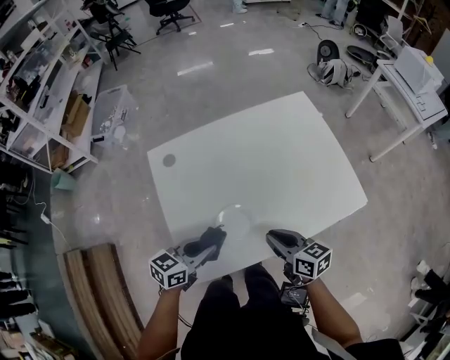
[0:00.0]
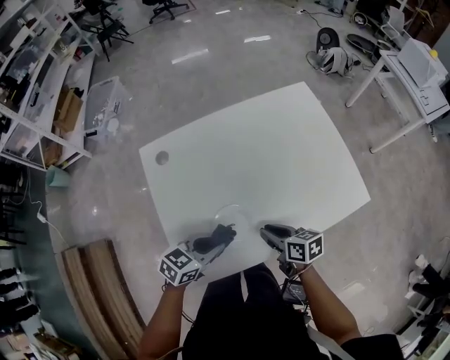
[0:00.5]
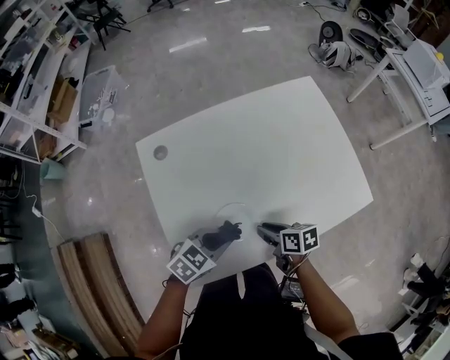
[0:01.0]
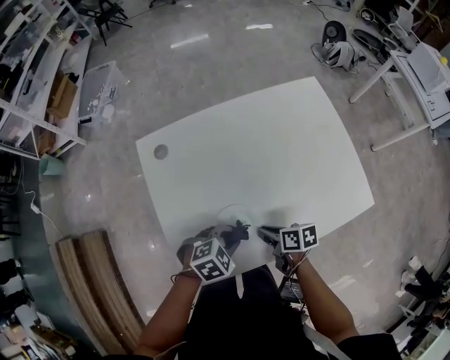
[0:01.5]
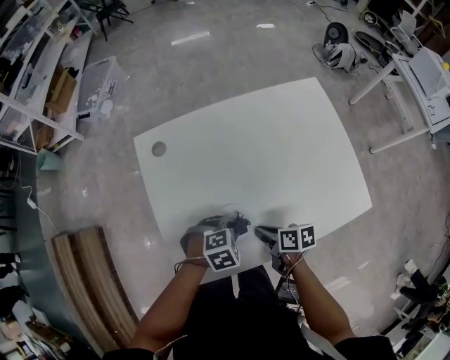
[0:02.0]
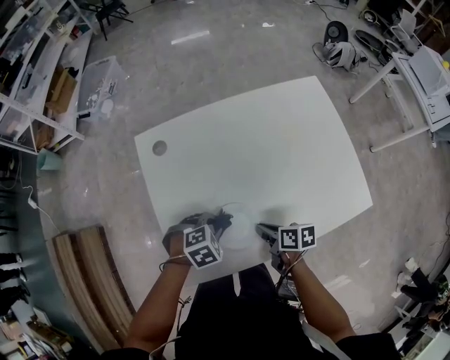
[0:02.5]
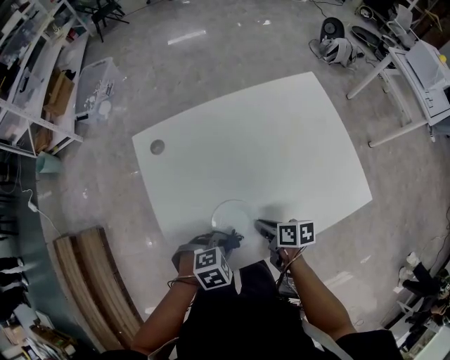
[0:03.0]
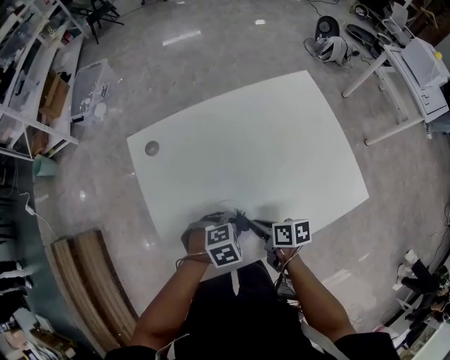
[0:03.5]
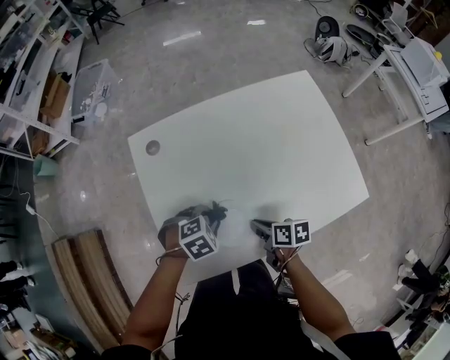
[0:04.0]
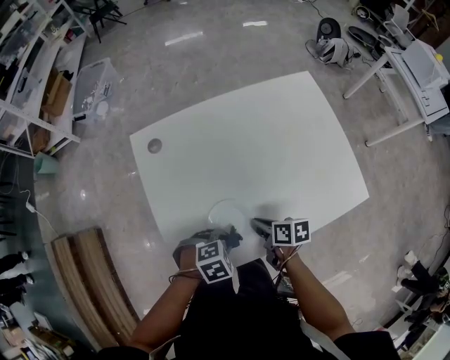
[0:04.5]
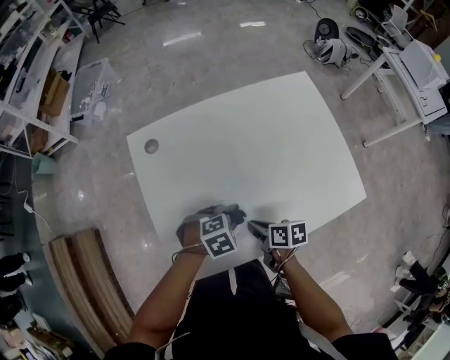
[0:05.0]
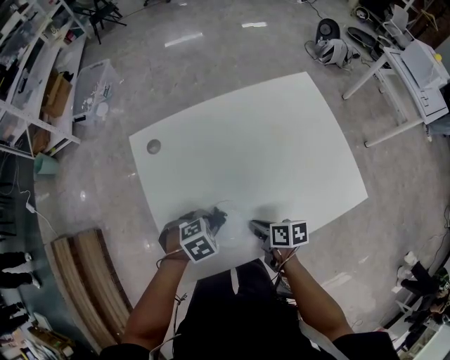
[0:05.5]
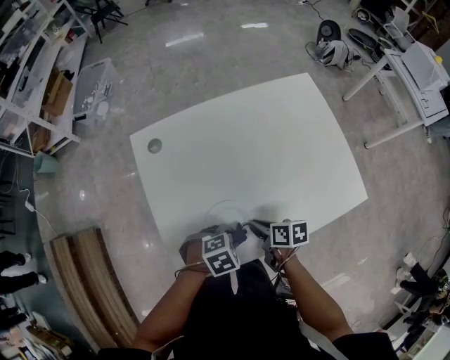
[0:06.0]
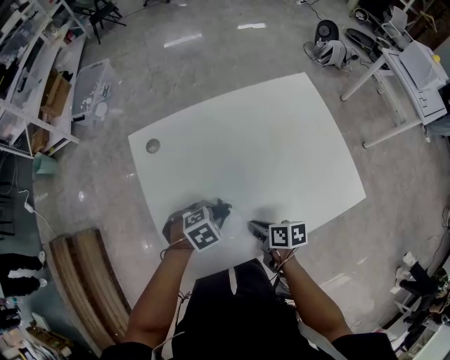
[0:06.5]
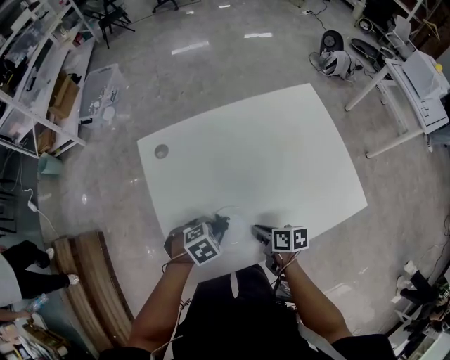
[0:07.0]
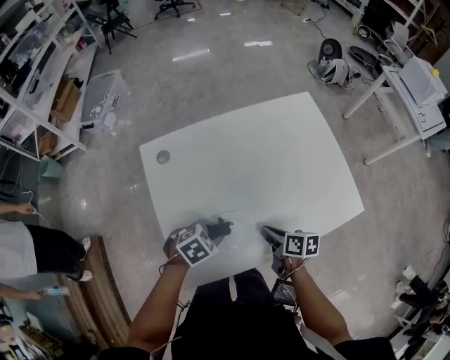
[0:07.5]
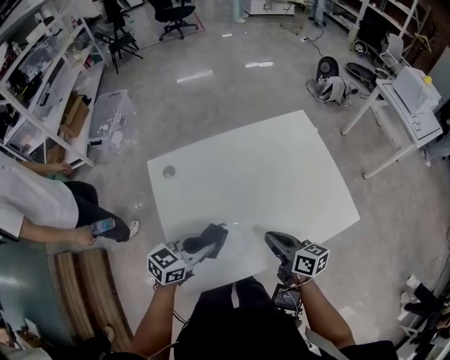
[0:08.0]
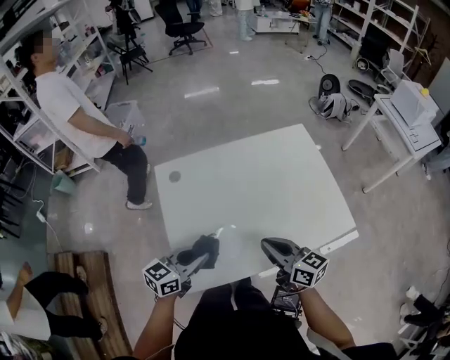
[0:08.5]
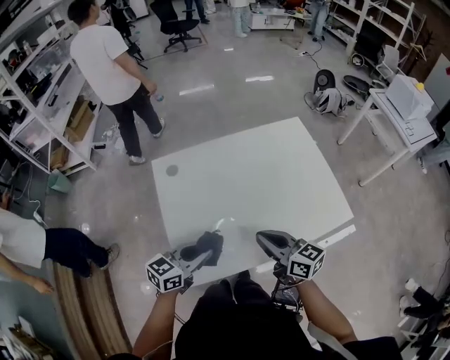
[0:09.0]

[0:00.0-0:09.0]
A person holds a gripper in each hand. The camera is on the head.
0:00.0 to 0:02.0: Both grippers travel together downward, some 15 cm. The left gripper angles its fingers downward, by some 40 degrees; the right gripper rotates about 40 degrees.
0:02.0 to 0:04.5: The left gripper shifts by roughly 5 cm.
0:04.5 to 0:07.0: The left gripper changes place by approximately 5 cm.
0:07.0 to 0:09.0: The grippers both shift upward by about 20 cm. The right gripper angles its fingers upward, by about 30 degrees. The left gripper tips its fingers upward by roughly 50 degrees.

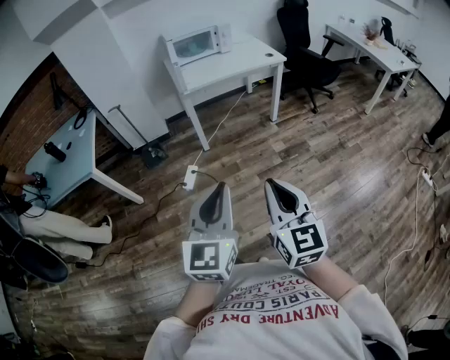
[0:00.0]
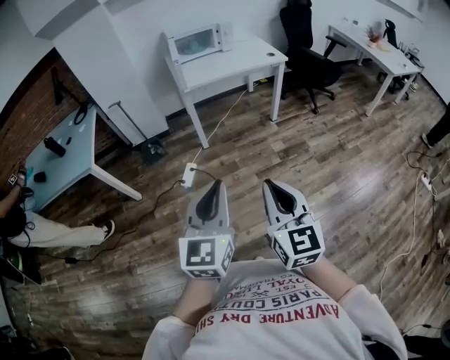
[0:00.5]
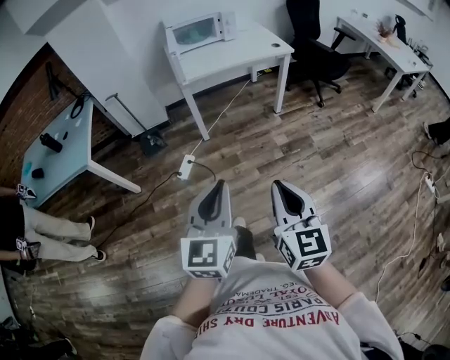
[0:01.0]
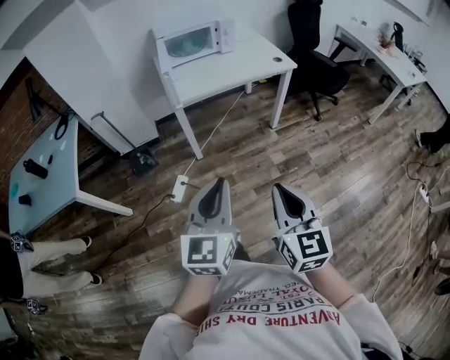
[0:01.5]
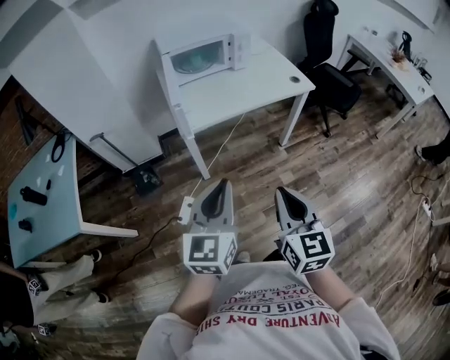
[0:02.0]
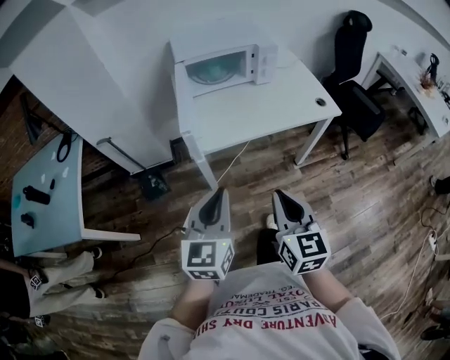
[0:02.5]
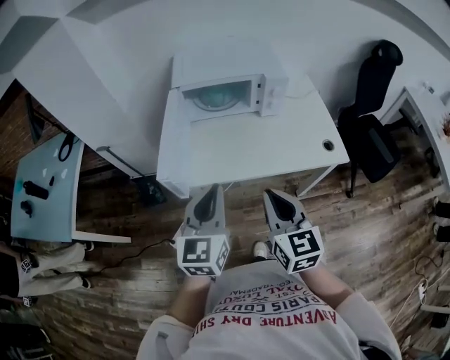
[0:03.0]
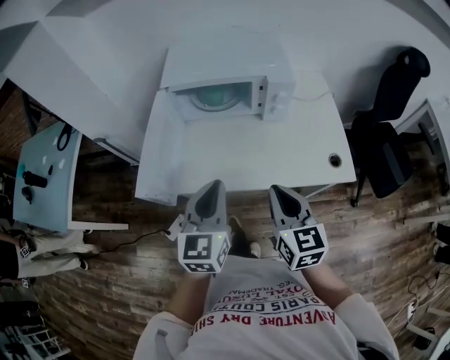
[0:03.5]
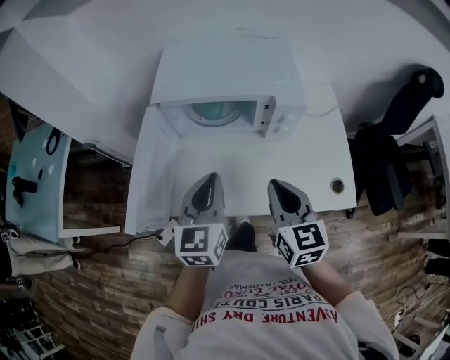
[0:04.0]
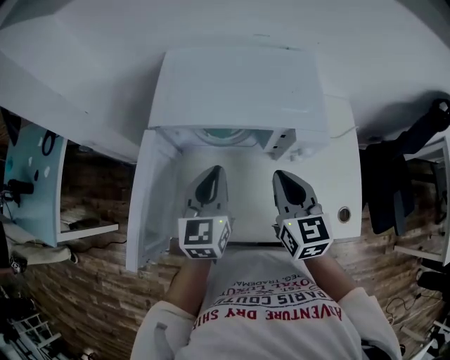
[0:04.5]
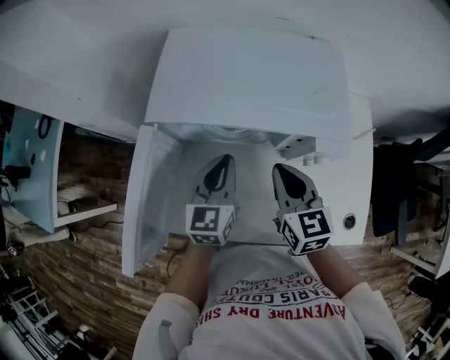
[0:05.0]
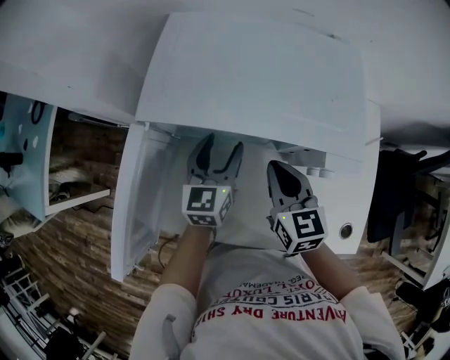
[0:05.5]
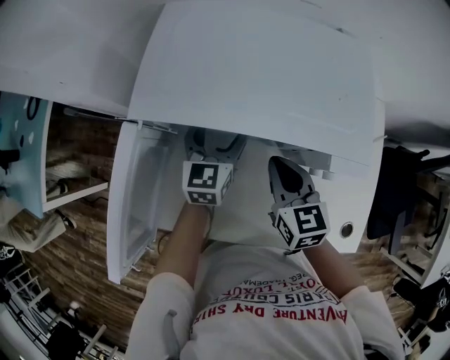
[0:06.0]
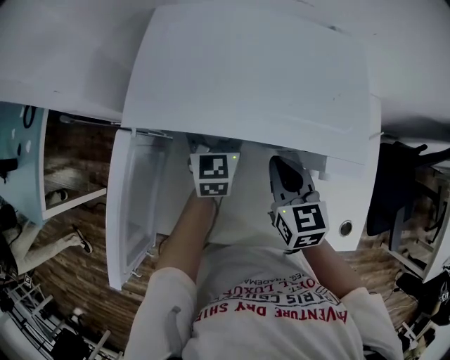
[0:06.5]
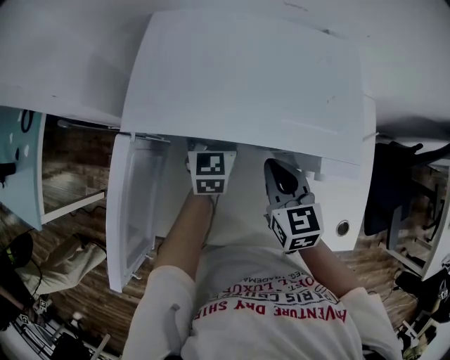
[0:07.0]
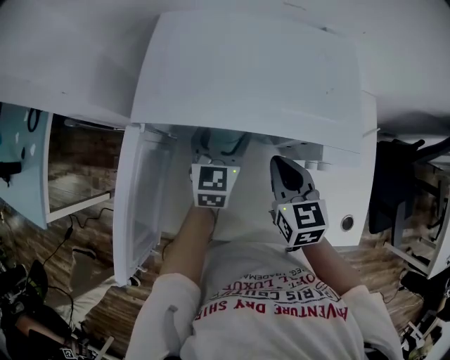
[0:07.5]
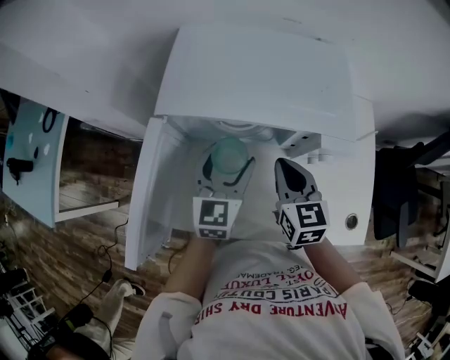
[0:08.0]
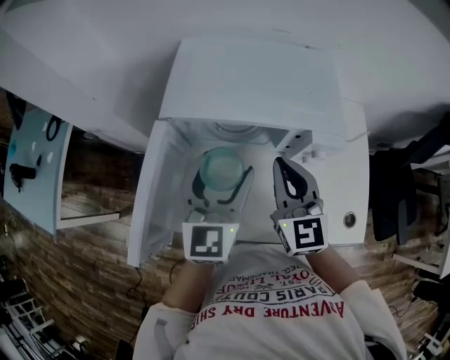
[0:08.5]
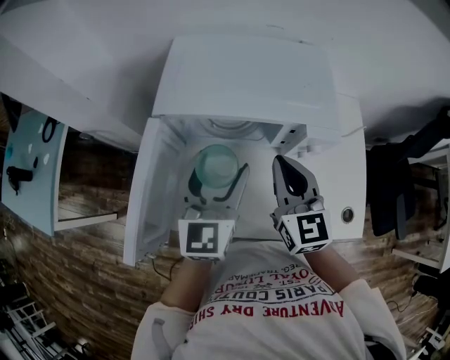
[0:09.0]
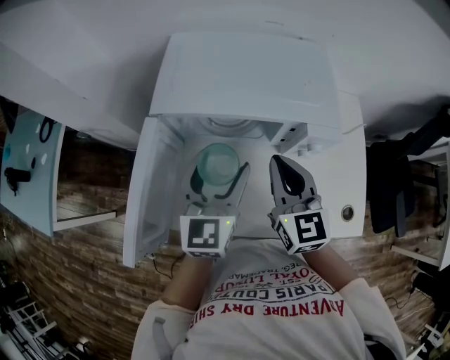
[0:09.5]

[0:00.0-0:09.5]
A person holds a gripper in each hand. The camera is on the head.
0:00.0 to 0:02.0: The grippers both shift forward by roughly 40 cm.
0:02.0 to 0:04.0: Both grippers are carried about 50 cm. The left gripper changes its angle by roughly 30 degrees. Meanwhile the right gripper turns by roughly 30 degrees.
0:04.0 to 0:05.5: The two grippers go roughly 25 cm forward and downward. The left gripper opens its fingers.
0:07.5 to 0:09.5: The left gripper is displaced backward and upward by some 20 cm; the right gripper goes approximately 10 cm upward and backward.

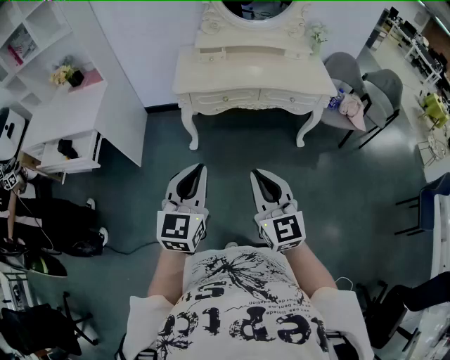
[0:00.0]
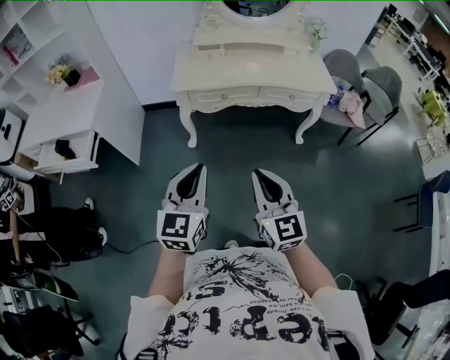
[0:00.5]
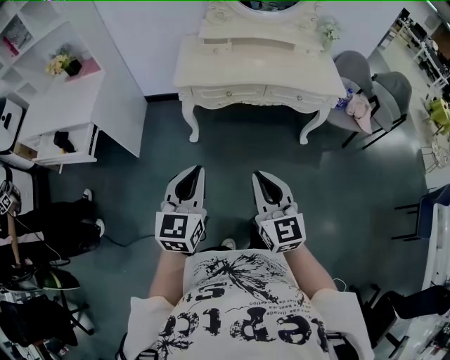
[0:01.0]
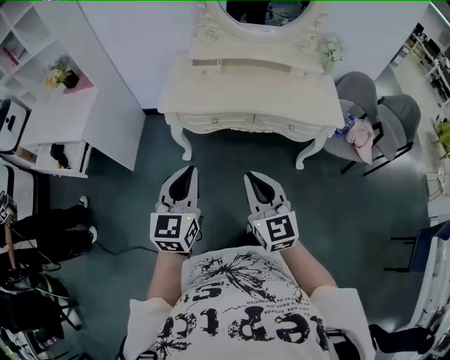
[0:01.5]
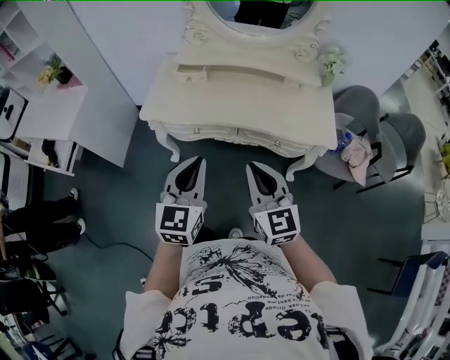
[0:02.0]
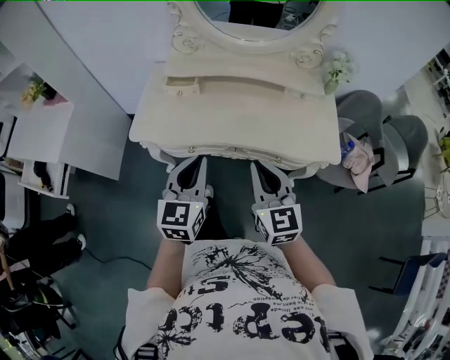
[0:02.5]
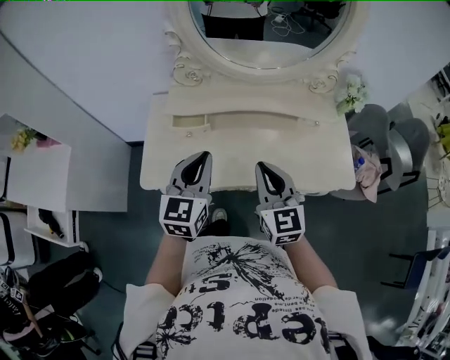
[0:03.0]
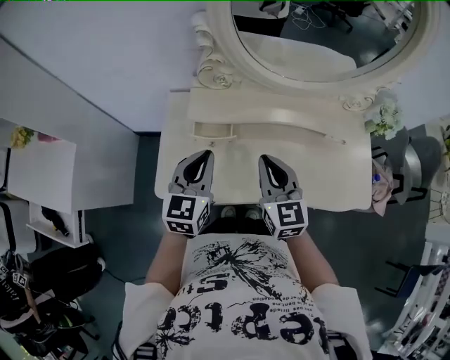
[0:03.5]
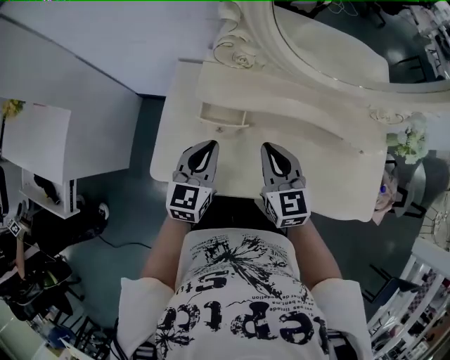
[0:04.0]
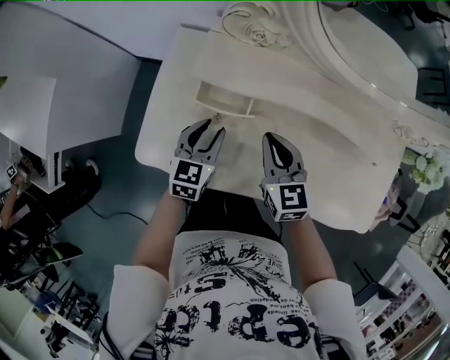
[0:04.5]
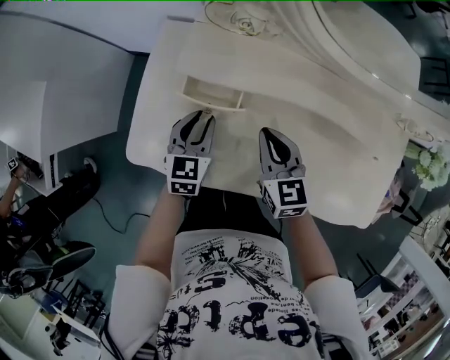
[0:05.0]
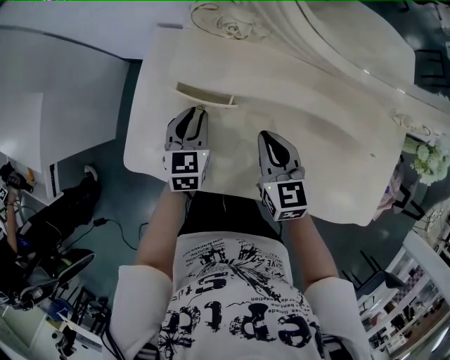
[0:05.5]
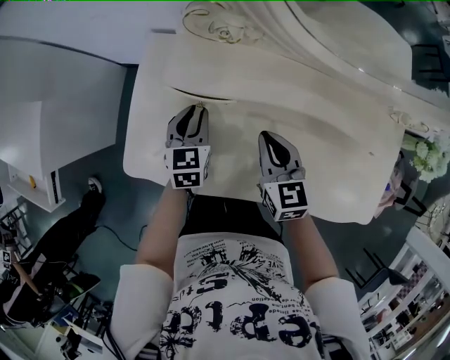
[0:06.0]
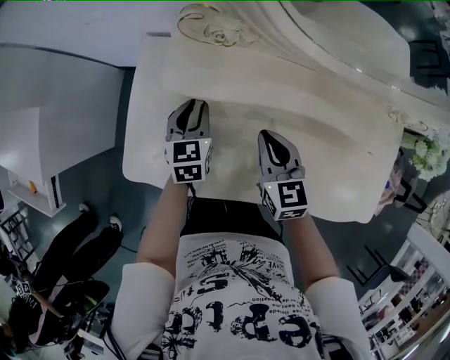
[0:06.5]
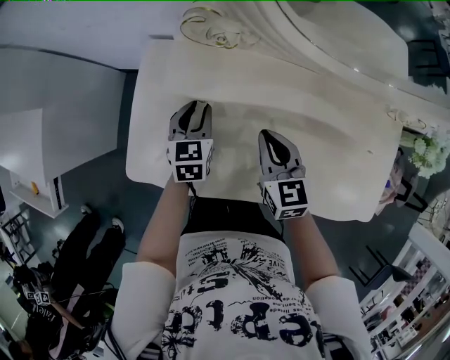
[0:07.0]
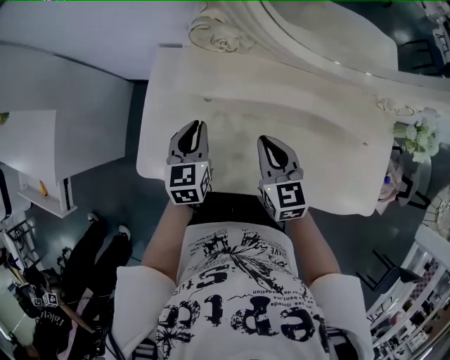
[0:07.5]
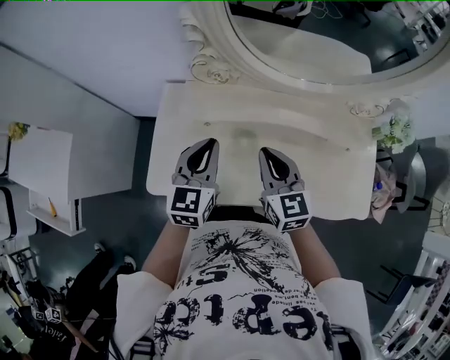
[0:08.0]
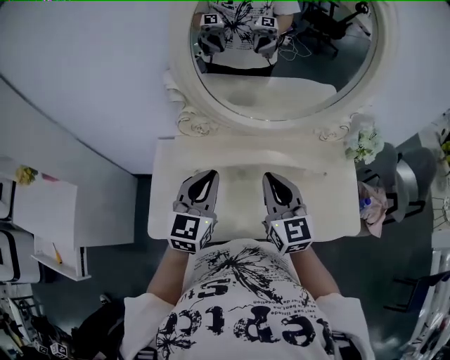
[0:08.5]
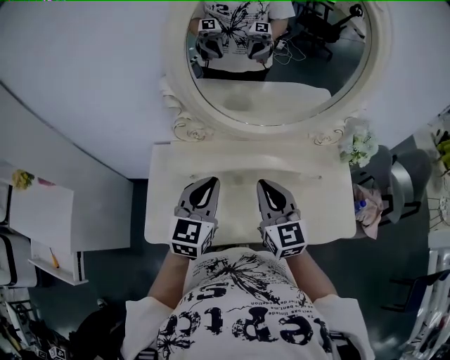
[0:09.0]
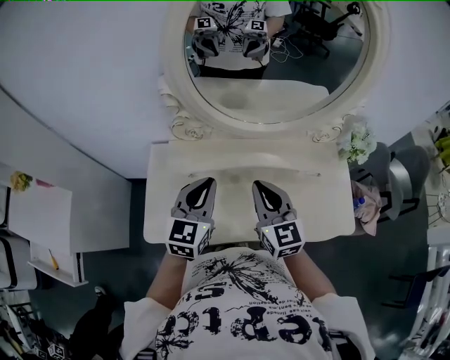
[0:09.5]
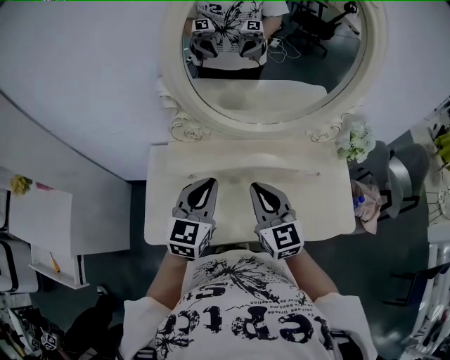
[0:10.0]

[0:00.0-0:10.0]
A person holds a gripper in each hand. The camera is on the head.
0:00.0 to 0:02.0: Both grippers move forward and to the right, roughly 40 cm.
0:02.0 to 0:04.0: Both grippers are carried forward, roughly 50 cm.
0:04.0 to 0:06.0: The left gripper goes roughly 15 cm downward and forward, and turns by some 20 degrees. Meanwhile the right gripper shifts about 10 cm downward.
0:06.0 to 0:08.0: Both grippers travel together upward, some 20 cm. The left gripper rotates about 20 degrees.
0:08.0 to 0:10.0: The left gripper travels upward and to the right by about 10 cm; the right gripper shifts about 10 cm upward.
